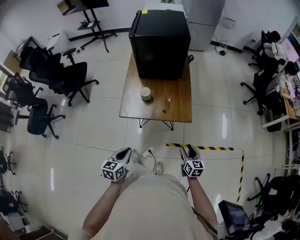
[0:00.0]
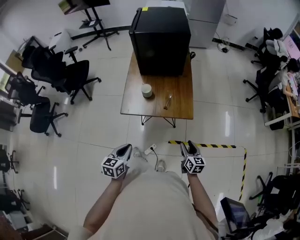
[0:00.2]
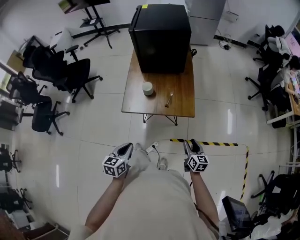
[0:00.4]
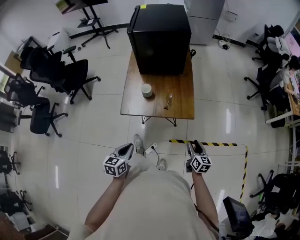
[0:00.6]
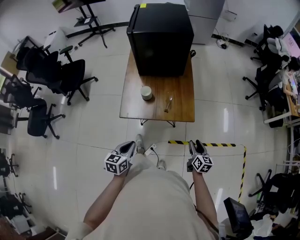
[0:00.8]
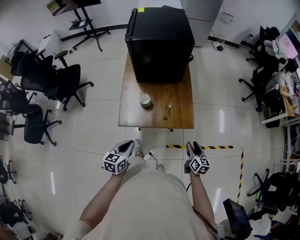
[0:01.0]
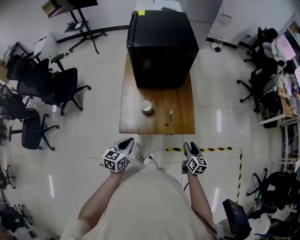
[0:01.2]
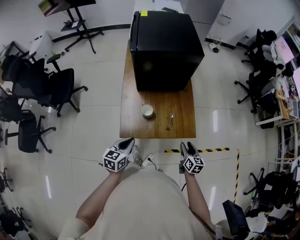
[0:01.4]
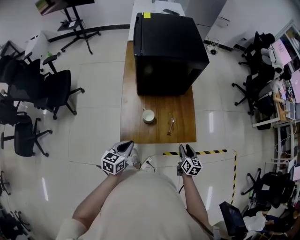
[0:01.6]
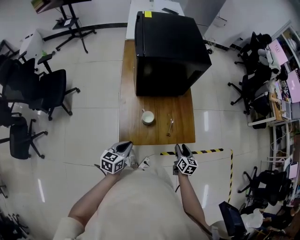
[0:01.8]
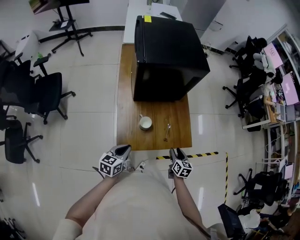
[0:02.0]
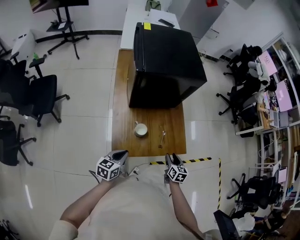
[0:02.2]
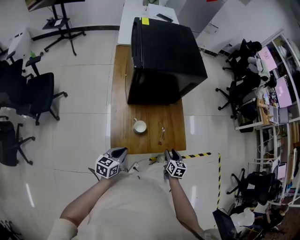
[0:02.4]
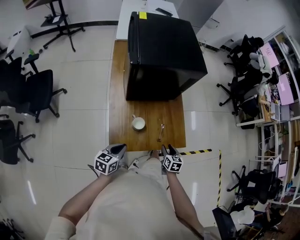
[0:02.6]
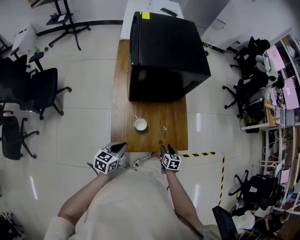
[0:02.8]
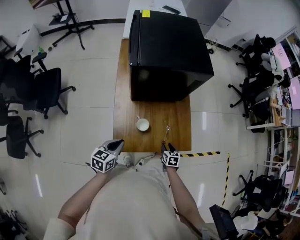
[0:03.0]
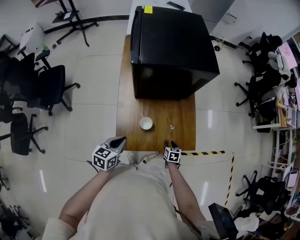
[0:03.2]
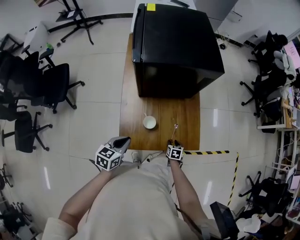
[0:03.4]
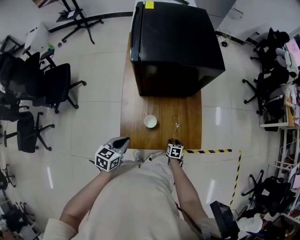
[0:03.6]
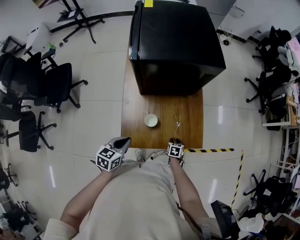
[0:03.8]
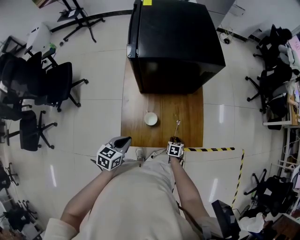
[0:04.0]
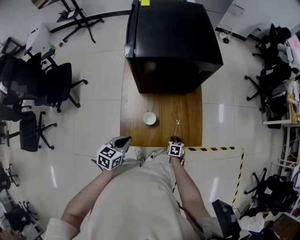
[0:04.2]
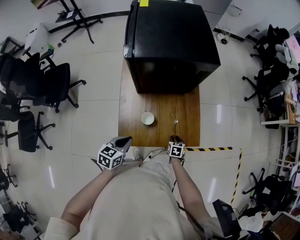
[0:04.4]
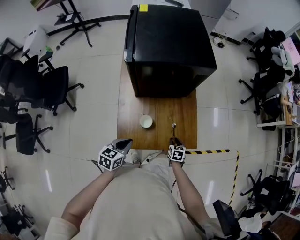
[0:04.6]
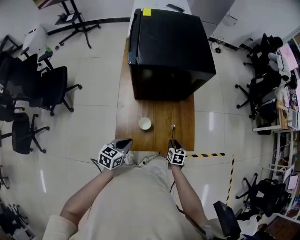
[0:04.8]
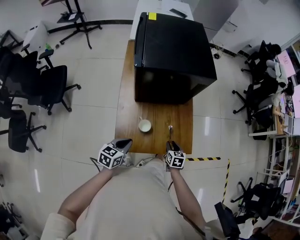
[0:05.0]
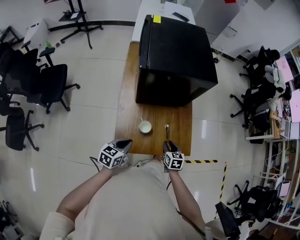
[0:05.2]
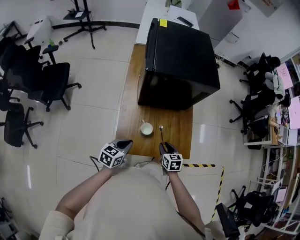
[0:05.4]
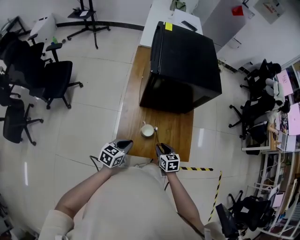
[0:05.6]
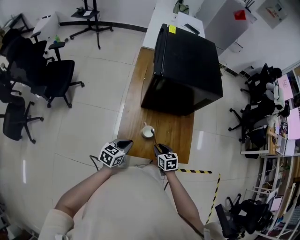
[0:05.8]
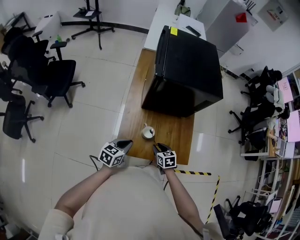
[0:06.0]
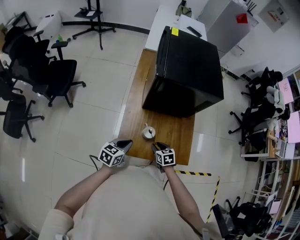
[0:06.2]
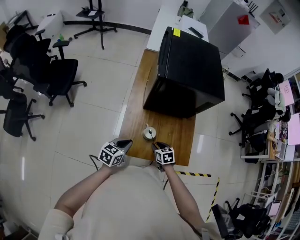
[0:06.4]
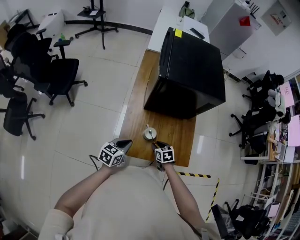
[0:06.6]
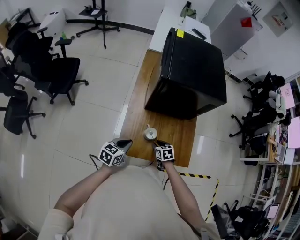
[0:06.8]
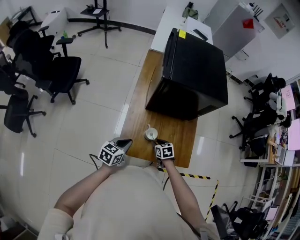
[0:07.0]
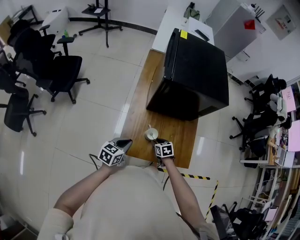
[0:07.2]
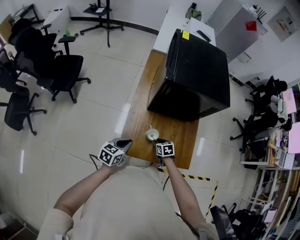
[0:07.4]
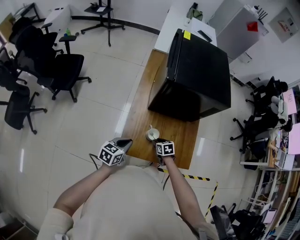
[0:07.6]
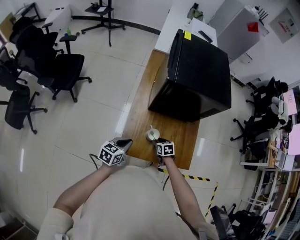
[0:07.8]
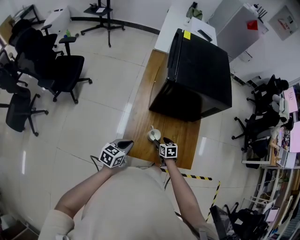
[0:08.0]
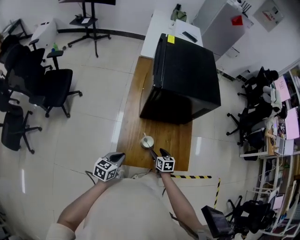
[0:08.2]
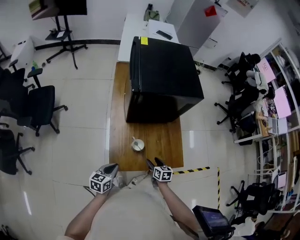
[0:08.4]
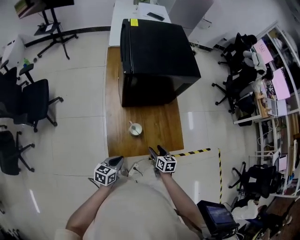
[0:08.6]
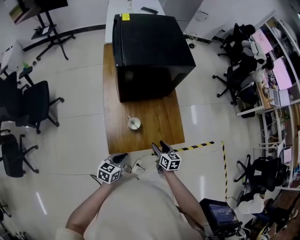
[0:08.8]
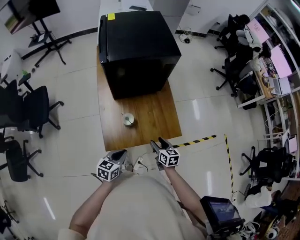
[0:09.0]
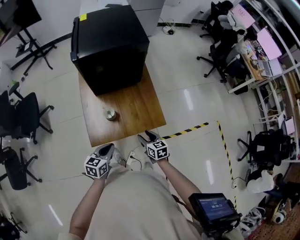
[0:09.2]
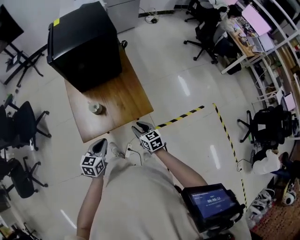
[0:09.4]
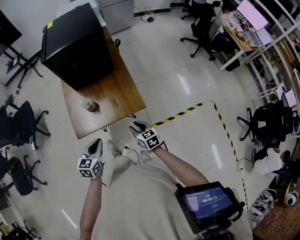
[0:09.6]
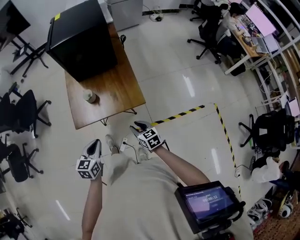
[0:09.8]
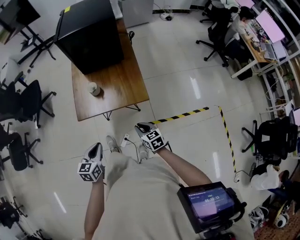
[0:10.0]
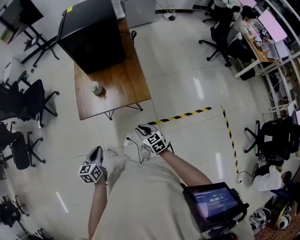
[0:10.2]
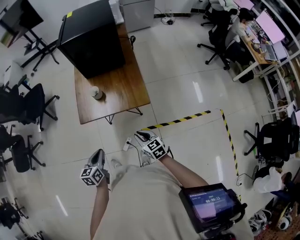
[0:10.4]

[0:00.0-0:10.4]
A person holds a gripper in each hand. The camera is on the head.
0:00.0 to 0:01.4: The left gripper travels forward by some 25 cm. Meanwhile the right gripper goes roughly 20 cm forward and to the left.
0:01.4 to 0:03.0: The left gripper goes some 10 cm forward and to the left. The right gripper moves downward, to the left and forward, approximately 20 cm, and swivels about 20 degrees.
0:04.4 to 0:06.0: The right gripper is displaced upward and to the left by roughly 20 cm, and changes its angle by roughly 30 degrees.
0:06.0 to 0:07.4: The right gripper is displaced downward by approximately 5 cm.
0:07.4 to 0:09.0: The right gripper travels to the right, backward and upward by approximately 20 cm, turns by roughly 40 degrees, and opens; the left gripper goes approximately 15 cm backward and to the right.
0:09.0 to 0:10.4: The left gripper shifts by some 25 cm, and swivels some 30 degrees; the right gripper ends up approximately 25 cm from where it was, swivels about 30 degrees, and closes up.

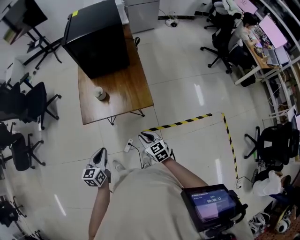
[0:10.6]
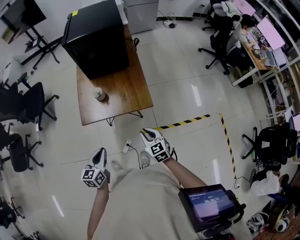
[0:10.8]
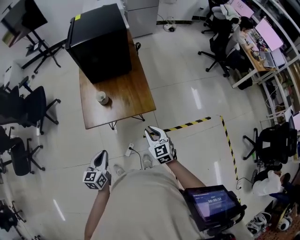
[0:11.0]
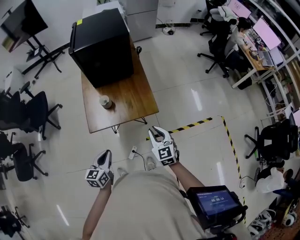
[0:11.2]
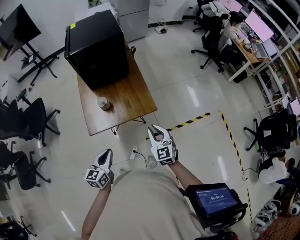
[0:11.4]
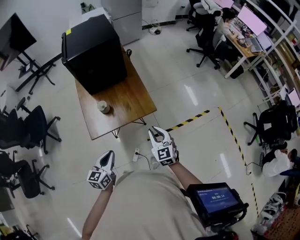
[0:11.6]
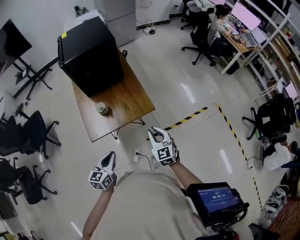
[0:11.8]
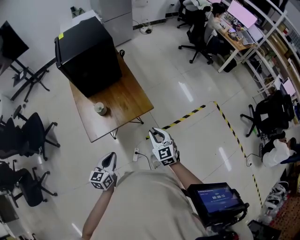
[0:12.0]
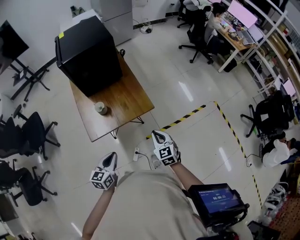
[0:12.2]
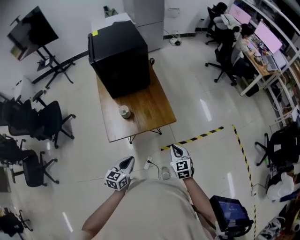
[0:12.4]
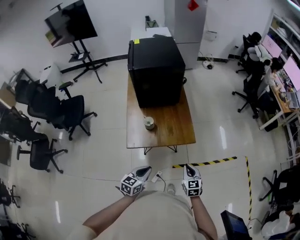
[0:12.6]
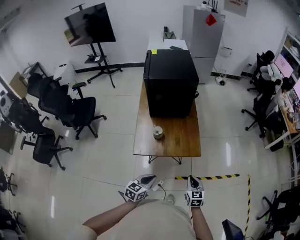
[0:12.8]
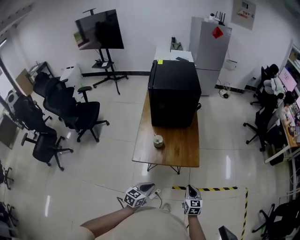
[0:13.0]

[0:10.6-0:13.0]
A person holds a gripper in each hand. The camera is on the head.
0:10.6 to 0:11.8: The right gripper is displaced upward by approximately 10 cm, and swivels some 30 degrees. The left gripper changes place by about 5 cm, and changes its angle by some 20 degrees.
0:11.8 to 0:13.0: The left gripper heads to the right, covering approximately 5 cm. The right gripper heads downward, covering approximately 5 cm.

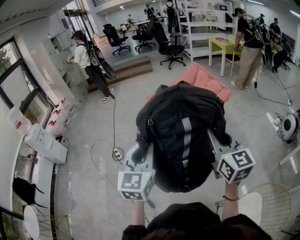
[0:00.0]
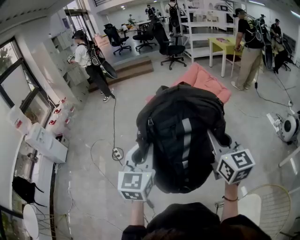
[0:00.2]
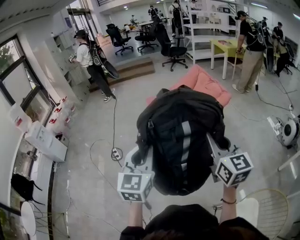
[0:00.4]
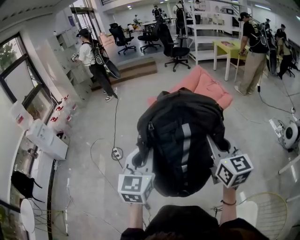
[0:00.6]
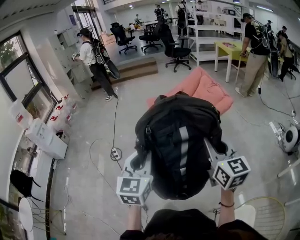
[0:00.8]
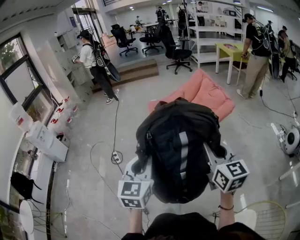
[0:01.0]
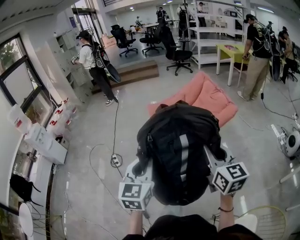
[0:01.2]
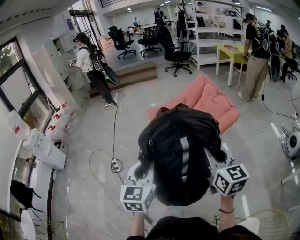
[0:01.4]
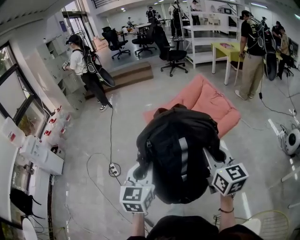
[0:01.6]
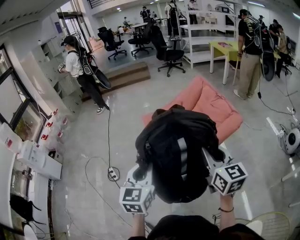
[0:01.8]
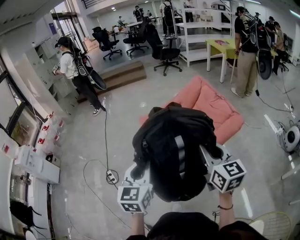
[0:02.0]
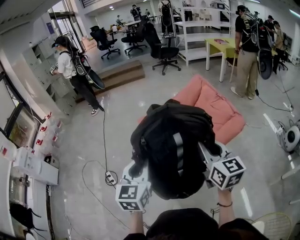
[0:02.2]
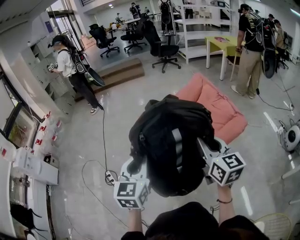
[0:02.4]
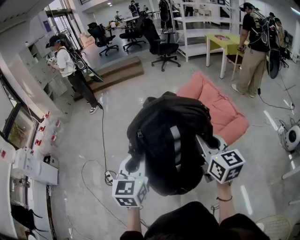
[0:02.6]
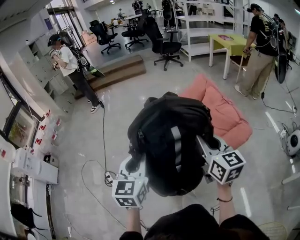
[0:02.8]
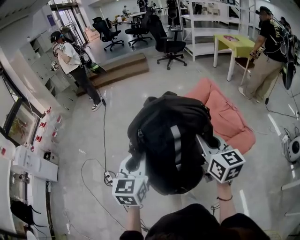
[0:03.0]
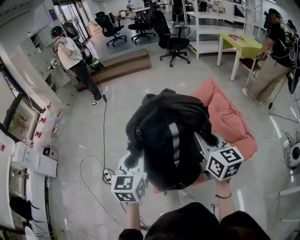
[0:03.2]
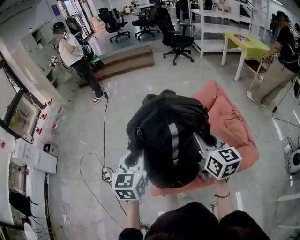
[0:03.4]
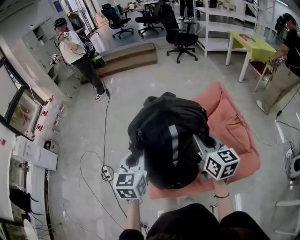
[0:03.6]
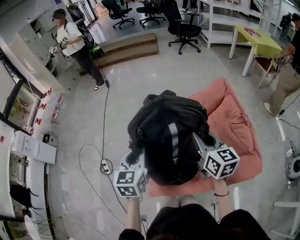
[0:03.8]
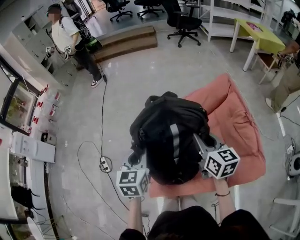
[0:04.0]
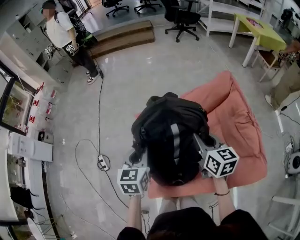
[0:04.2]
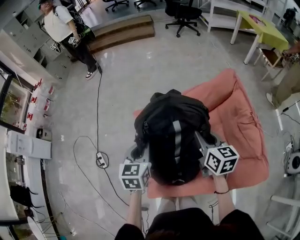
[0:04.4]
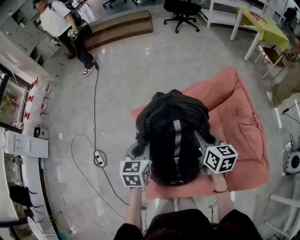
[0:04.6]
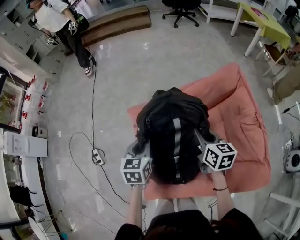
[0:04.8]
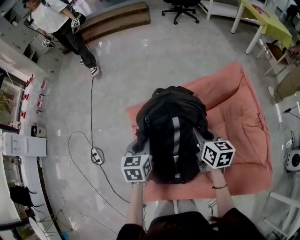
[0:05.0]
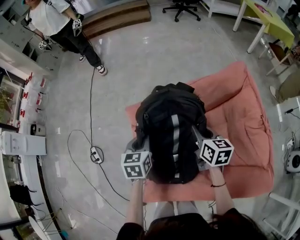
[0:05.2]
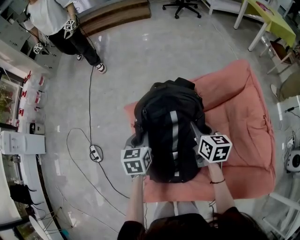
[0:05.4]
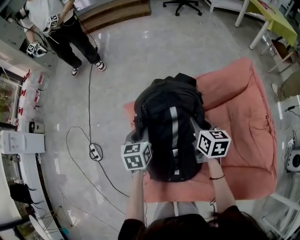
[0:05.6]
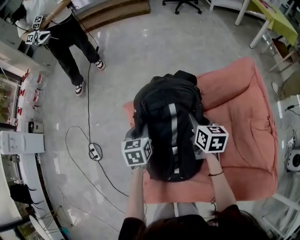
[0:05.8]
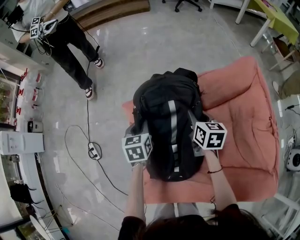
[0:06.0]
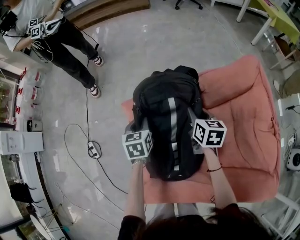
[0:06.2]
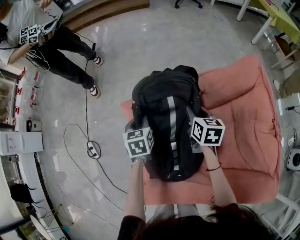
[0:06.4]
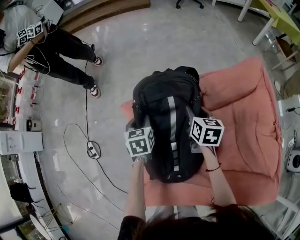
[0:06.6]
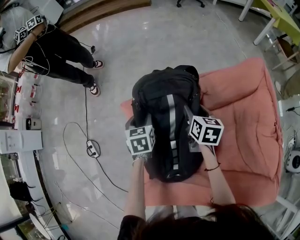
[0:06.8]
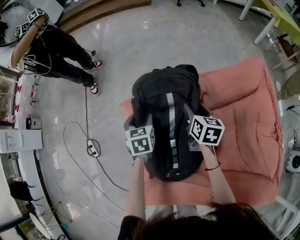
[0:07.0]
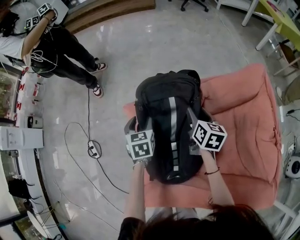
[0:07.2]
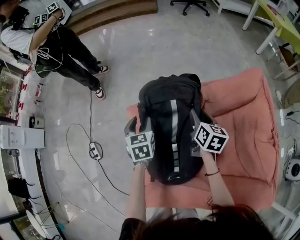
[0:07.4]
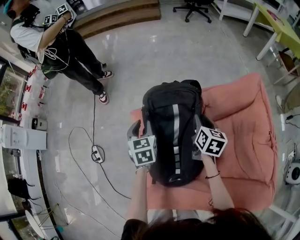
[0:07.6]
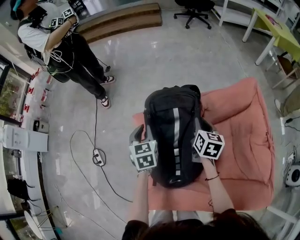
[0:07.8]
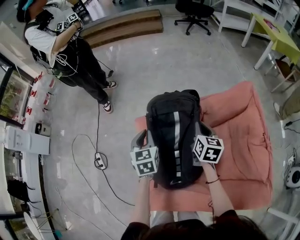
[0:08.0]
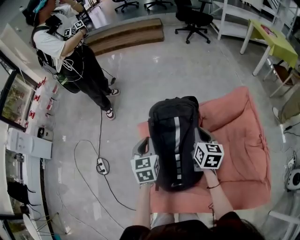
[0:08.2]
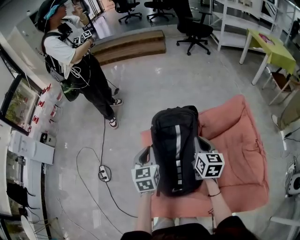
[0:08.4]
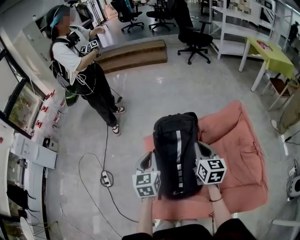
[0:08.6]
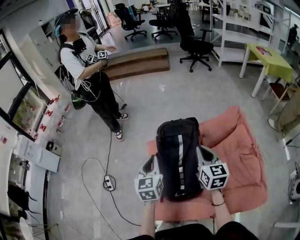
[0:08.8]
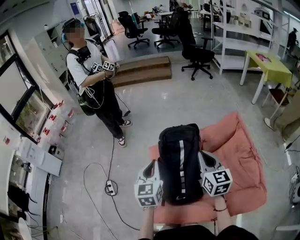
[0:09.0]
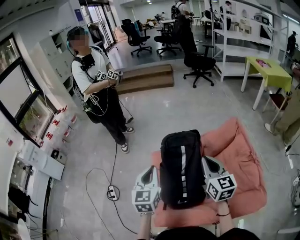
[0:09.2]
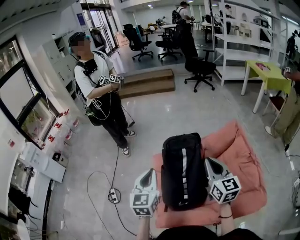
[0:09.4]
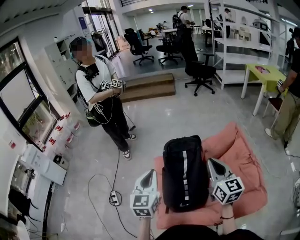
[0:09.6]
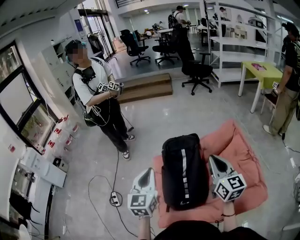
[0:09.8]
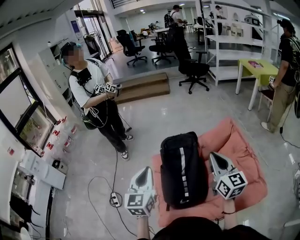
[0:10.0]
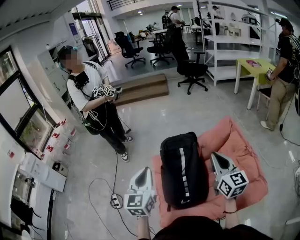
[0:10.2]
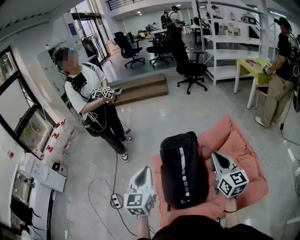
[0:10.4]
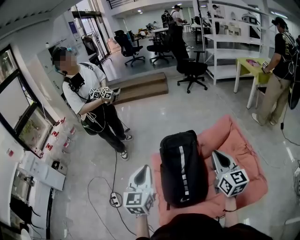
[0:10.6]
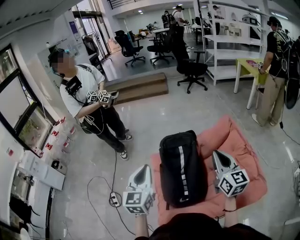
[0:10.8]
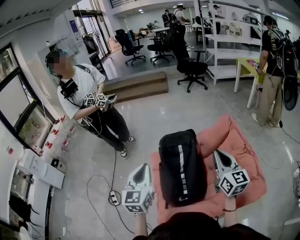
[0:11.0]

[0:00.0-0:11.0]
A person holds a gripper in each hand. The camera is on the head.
0:00.0 to 0:01.6: Both grippers move forward, some 20 cm.
0:01.6 to 0:03.2: The two grippers go roughly 35 cm forward.
0:03.2 to 0:04.8: The grippers both shift downward and forward by some 30 cm. The left gripper rotates about 20 degrees; the right gripper swivels about 30 degrees.
0:04.8 to 0:06.2: The left gripper moves downward and forward, about 15 cm. The right gripper is displaced forward and downward by approximately 15 cm.
0:06.2 to 0:07.8: The right gripper shifts roughly 5 cm upward, and opens, then closes again, while the left gripper moves upward, roughly 10 cm, and opens and closes again.
0:07.8 to 0:09.4: Both grippers travel together upward and backward, approximately 30 cm. The right gripper swivels approximately 30 degrees; the left gripper turns by approximately 20 degrees.
0:09.4 to 0:11.0: The right gripper moves to the right, roughly 5 cm.
